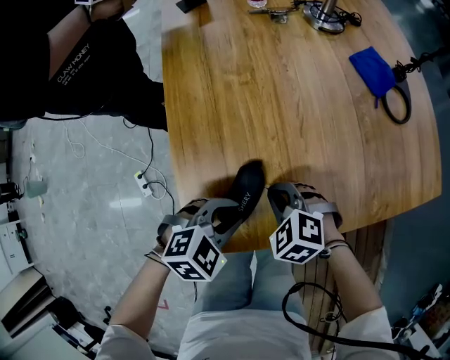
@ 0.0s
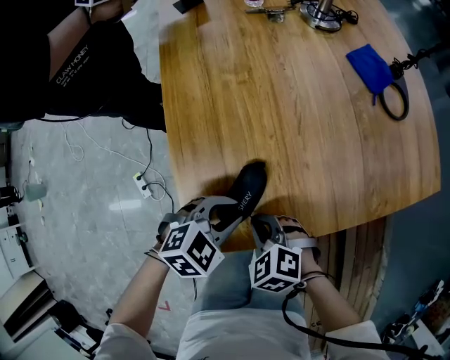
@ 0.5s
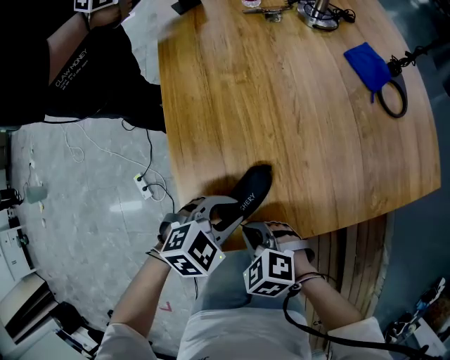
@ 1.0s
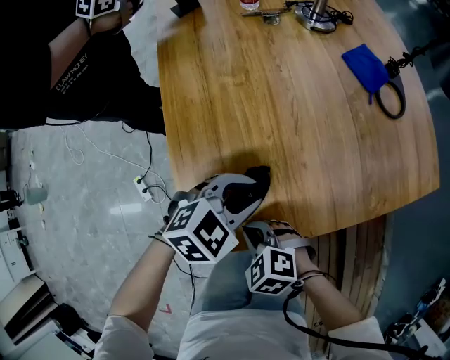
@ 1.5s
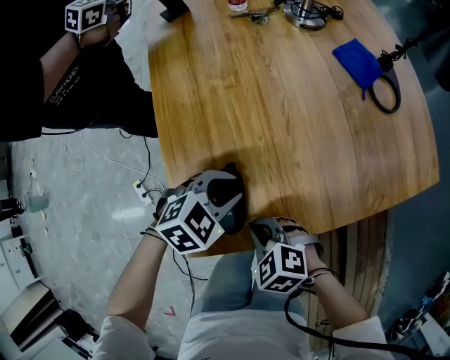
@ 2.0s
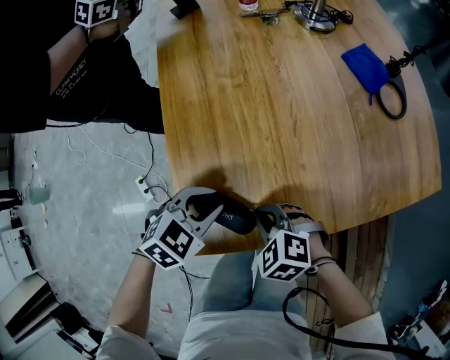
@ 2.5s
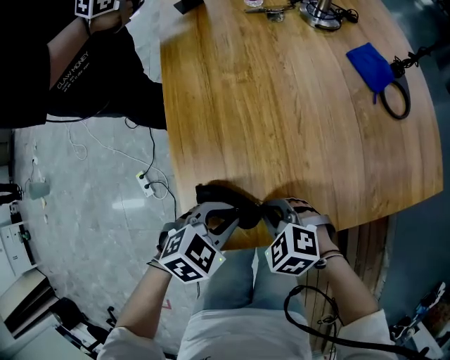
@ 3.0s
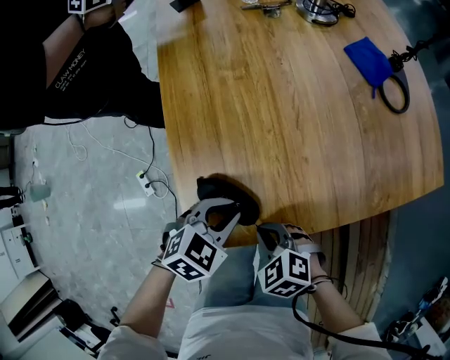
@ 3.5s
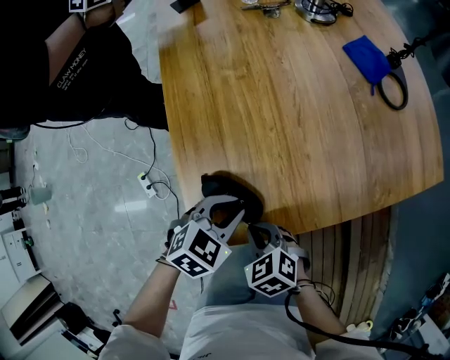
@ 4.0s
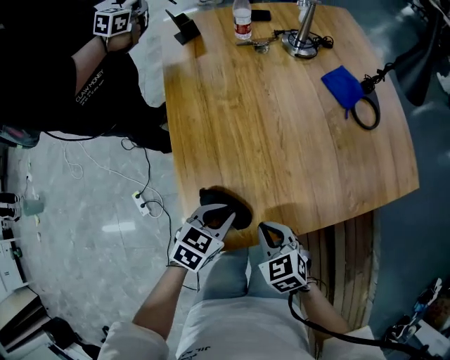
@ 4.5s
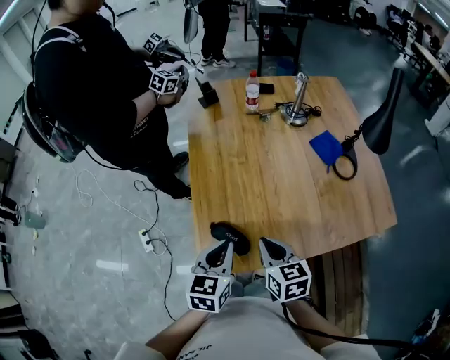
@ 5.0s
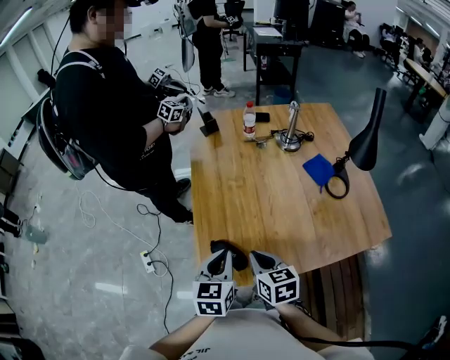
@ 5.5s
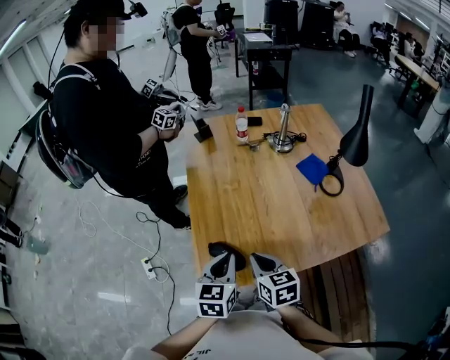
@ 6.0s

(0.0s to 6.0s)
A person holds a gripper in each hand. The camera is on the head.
0.0s - 2.0s: The right gripper moves roughly 10 cm. Meanwhile the left gripper ends up about 5 cm from where it was.
2.0s - 4.0s: The left gripper shifts by approximately 5 cm.
4.0s - 6.0s: The two grippers go approximately 20 cm upward. The left gripper rotates about 50 degrees. The right gripper swivels approximately 40 degrees.

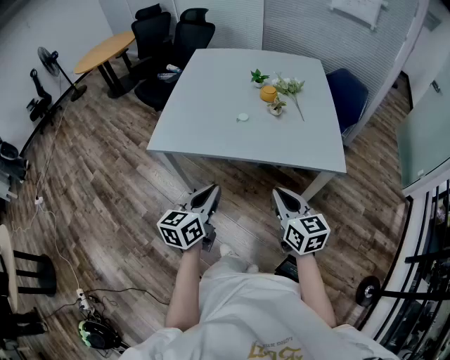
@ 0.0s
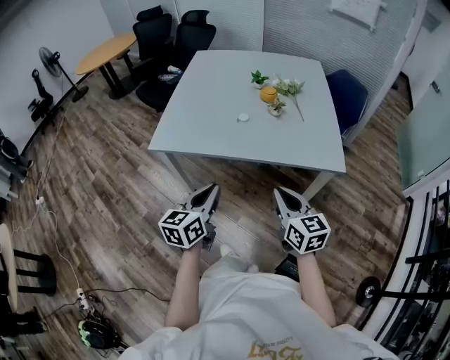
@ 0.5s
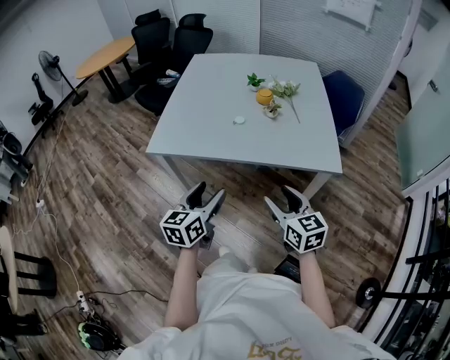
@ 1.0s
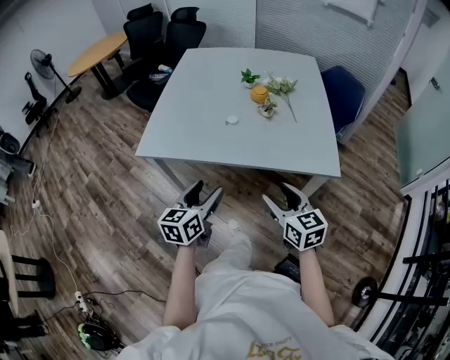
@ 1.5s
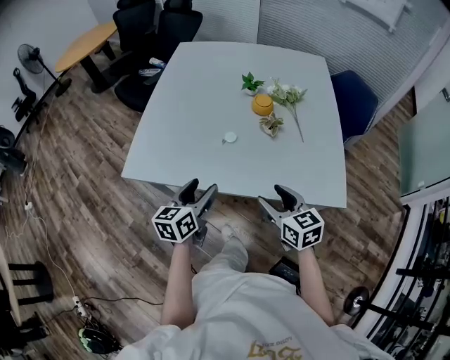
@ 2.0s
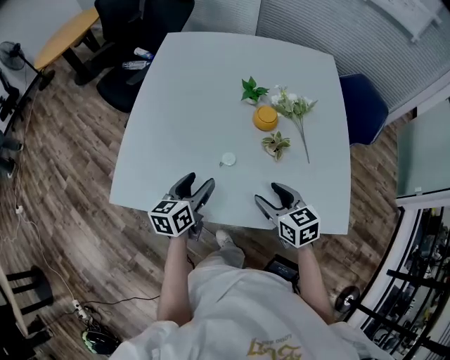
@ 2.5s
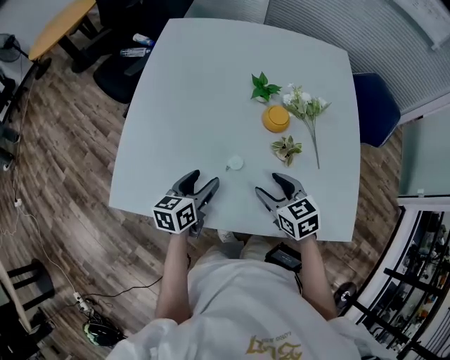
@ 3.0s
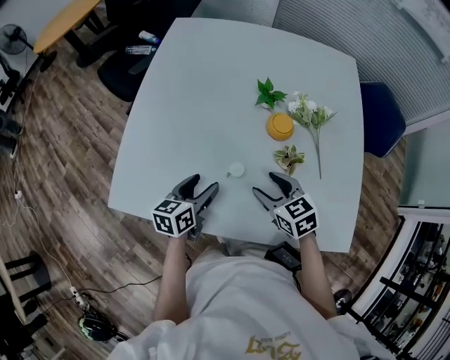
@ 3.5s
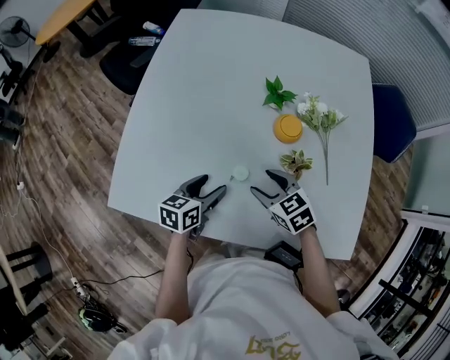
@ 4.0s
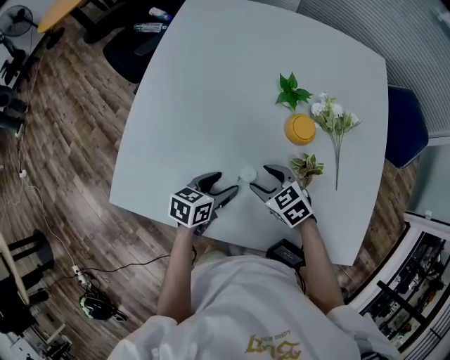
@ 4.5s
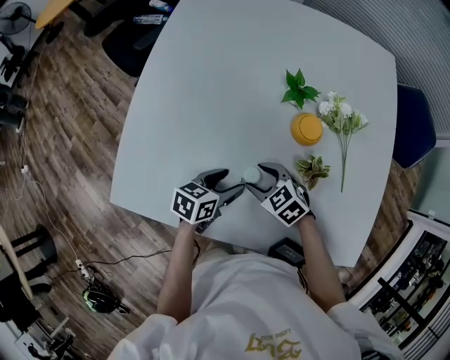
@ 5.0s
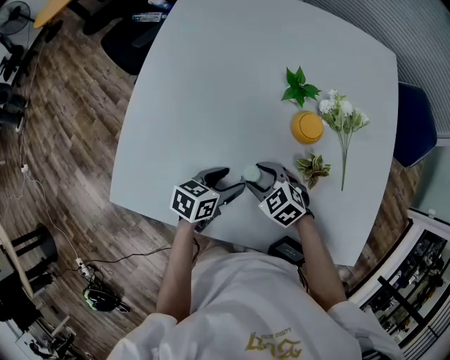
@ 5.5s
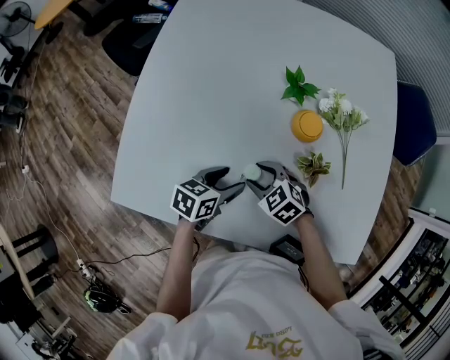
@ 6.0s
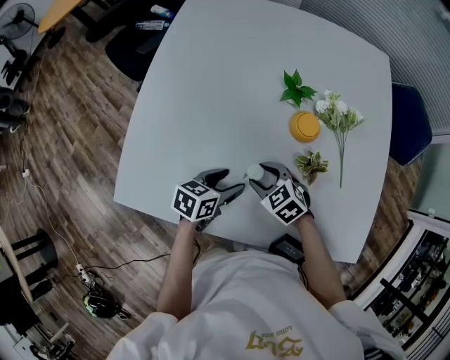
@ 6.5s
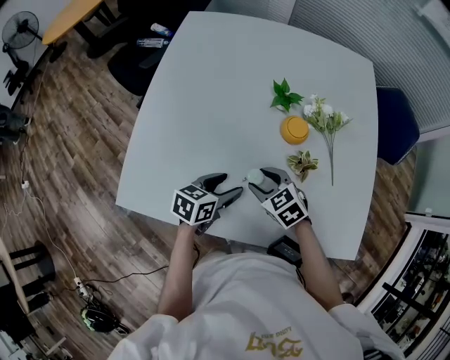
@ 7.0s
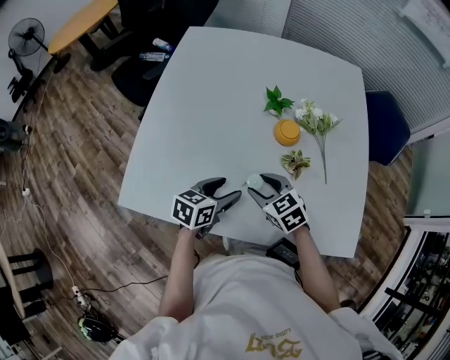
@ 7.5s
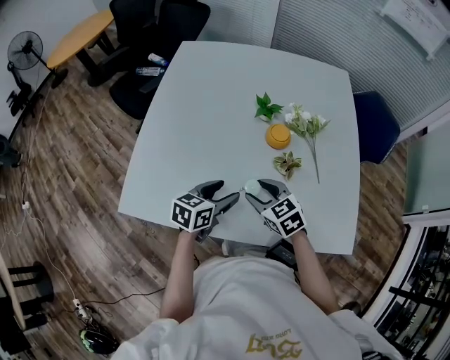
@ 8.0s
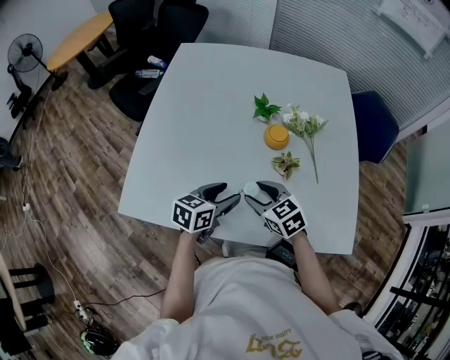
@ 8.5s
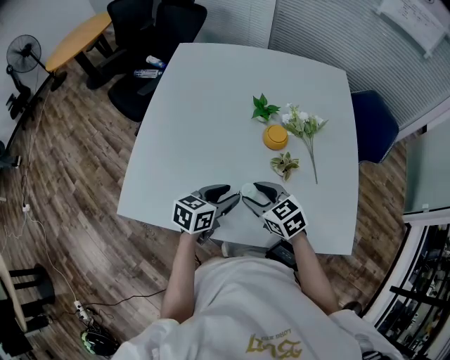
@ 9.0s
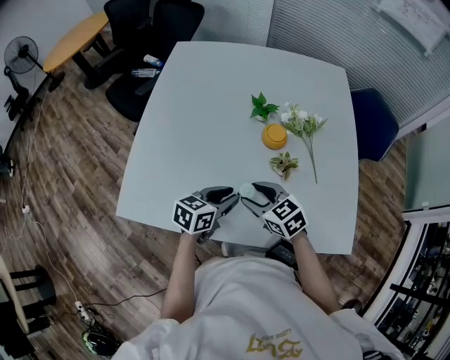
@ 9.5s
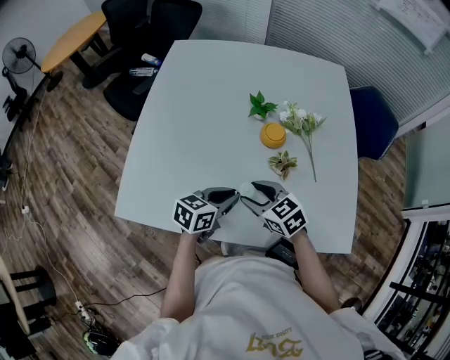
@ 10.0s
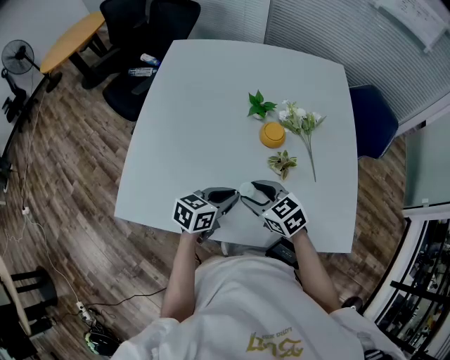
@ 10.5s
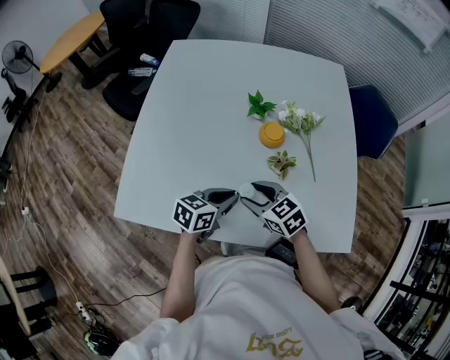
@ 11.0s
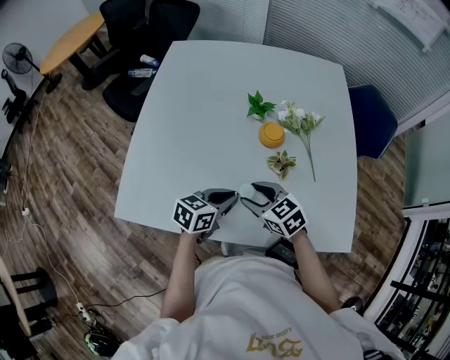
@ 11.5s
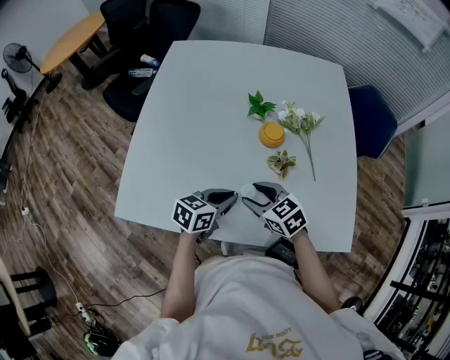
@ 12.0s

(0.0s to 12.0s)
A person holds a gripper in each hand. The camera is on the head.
0.0s - 2.0s: The two grippers go roughly 20 cm forward. The left gripper opens up, while the right gripper opens up.
2.0s - 4.0s: The left gripper travels forward and downward by roughly 25 cm, and rotates roughly 20 degrees. Meanwhile the right gripper shifts about 25 cm forward, and changes its angle by approximately 30 degrees.
4.0s - 6.0s: The right gripper shifts roughly 10 cm downward and to the left.
6.0s - 8.0s: Both grippers move upward and backward, approximately 10 cm. The right gripper swivels approximately 20 degrees.
8.0s - 10.0s: The left gripper closes.
10.0s - 12.0s: Neither gripper changes place.

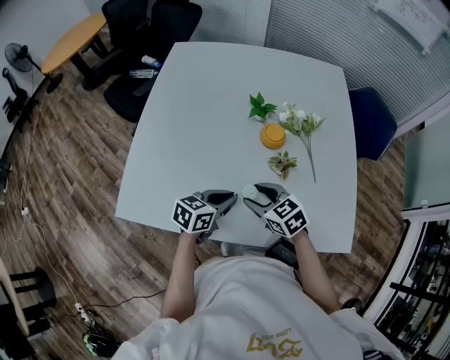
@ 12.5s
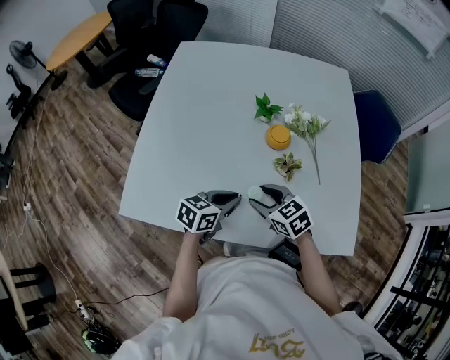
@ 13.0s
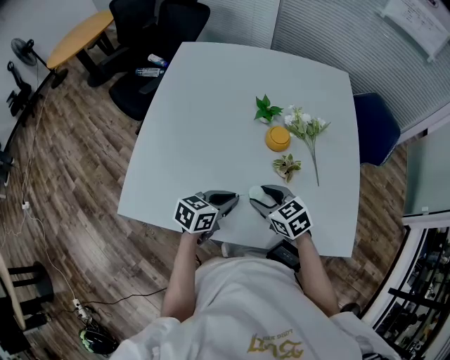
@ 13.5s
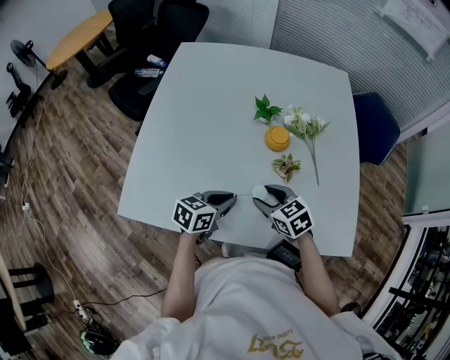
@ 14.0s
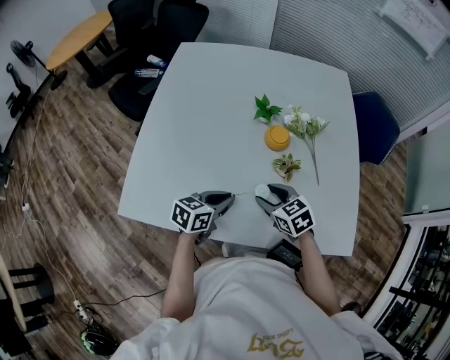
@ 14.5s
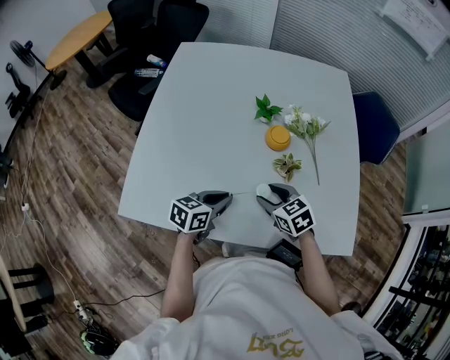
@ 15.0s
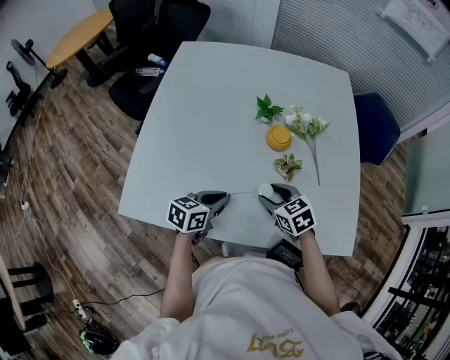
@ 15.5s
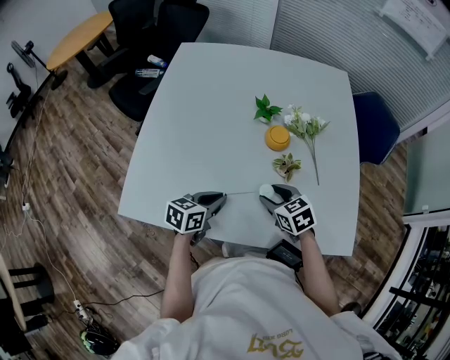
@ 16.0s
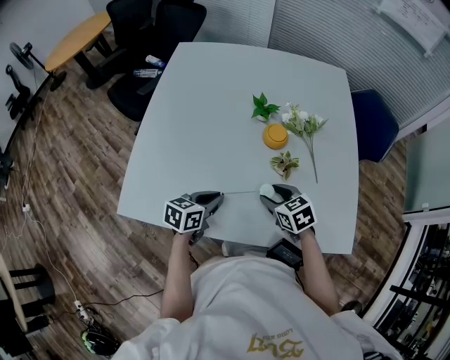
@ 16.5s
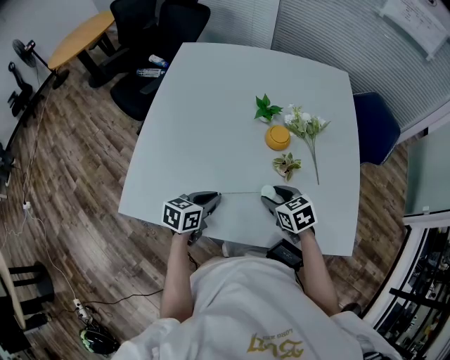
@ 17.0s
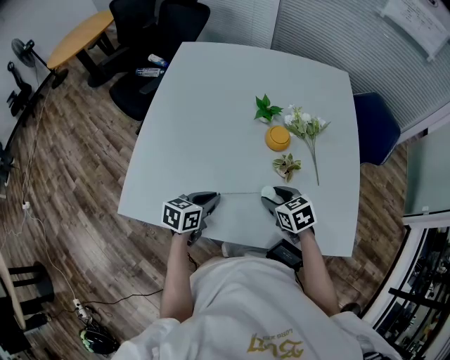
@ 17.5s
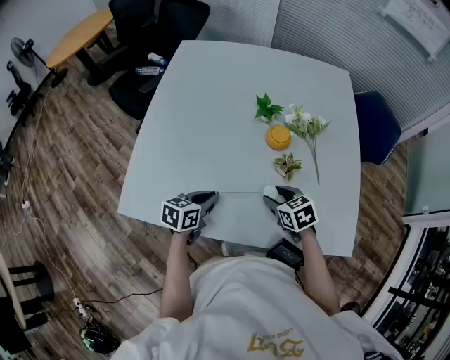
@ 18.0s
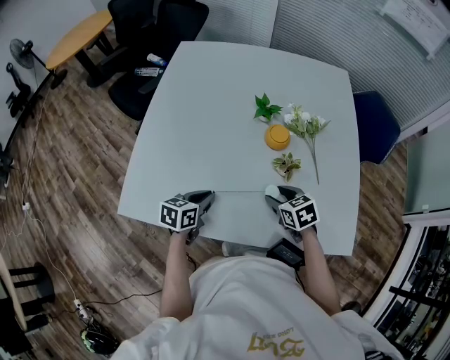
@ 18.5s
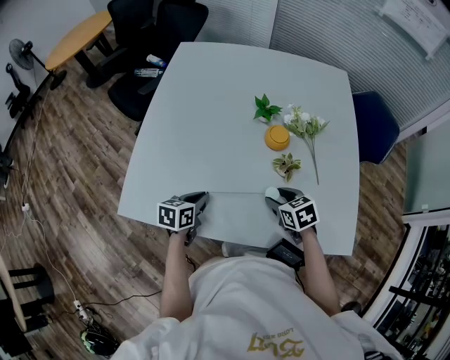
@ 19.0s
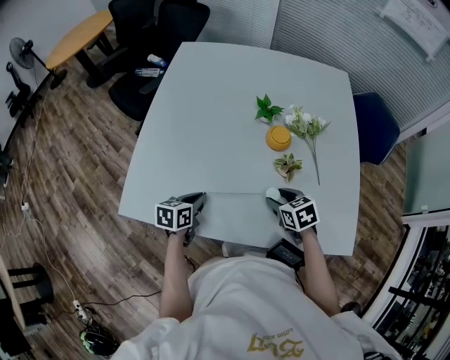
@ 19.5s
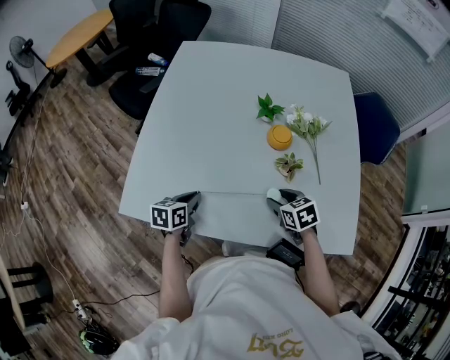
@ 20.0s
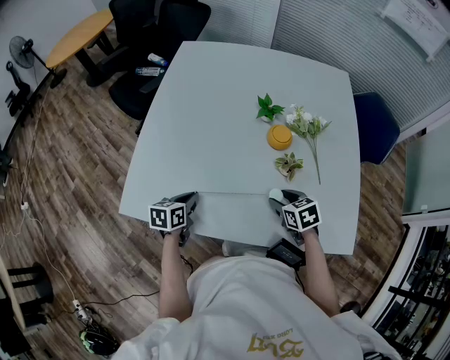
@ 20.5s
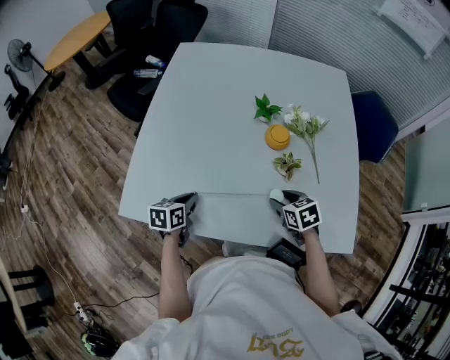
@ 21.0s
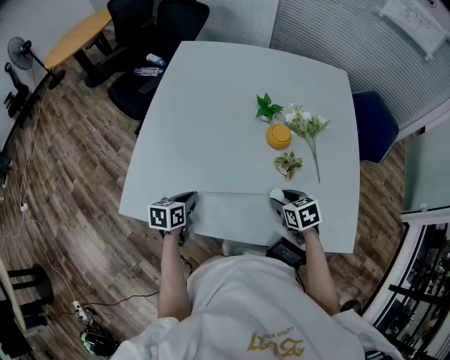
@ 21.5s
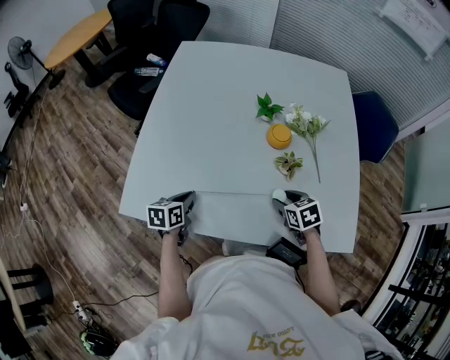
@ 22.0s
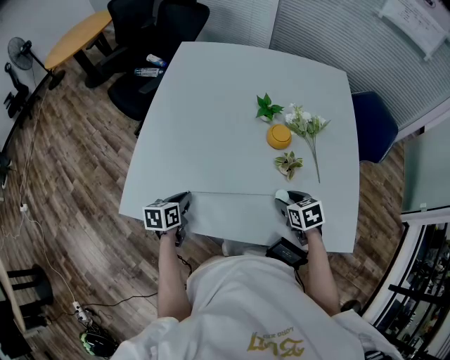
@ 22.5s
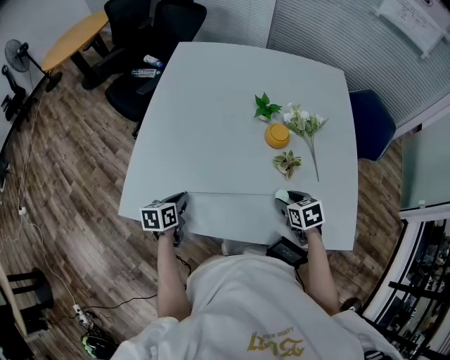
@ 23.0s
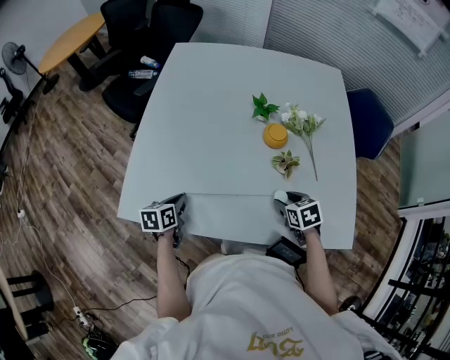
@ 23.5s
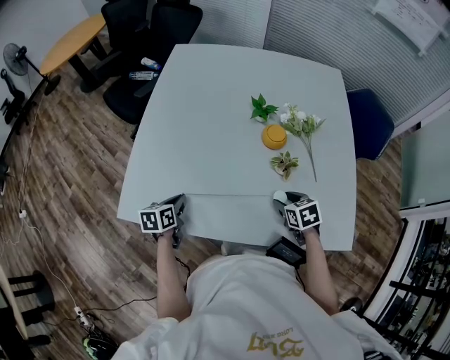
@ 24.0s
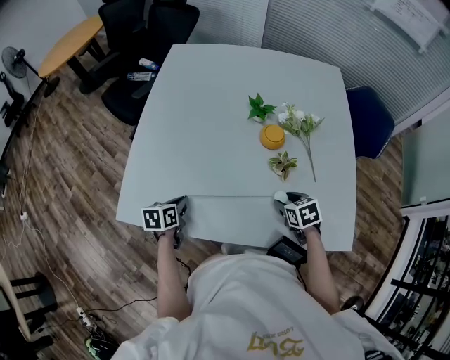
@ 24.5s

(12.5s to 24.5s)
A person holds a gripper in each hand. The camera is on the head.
12.5s - 16.5s: The grippers make only small movements.
16.5s - 18.5s: There are only small adjustments of the grippers.
18.5s - 20.5s: The left gripper travels to the left by roughly 5 cm.
20.5s - 24.5s: The grippers move only a little.
